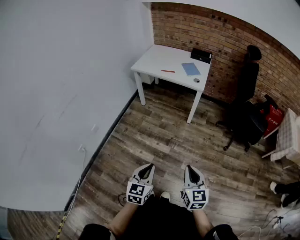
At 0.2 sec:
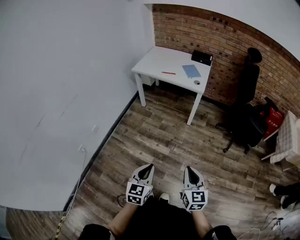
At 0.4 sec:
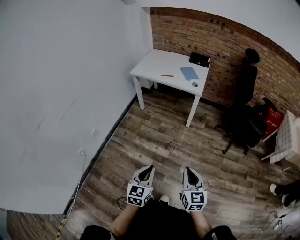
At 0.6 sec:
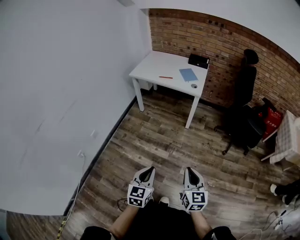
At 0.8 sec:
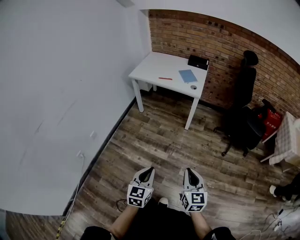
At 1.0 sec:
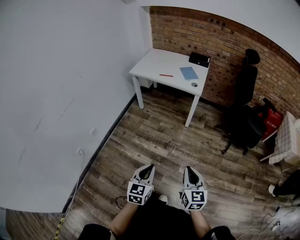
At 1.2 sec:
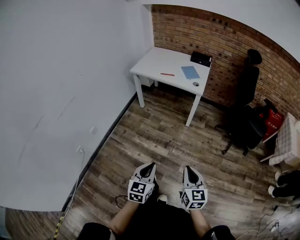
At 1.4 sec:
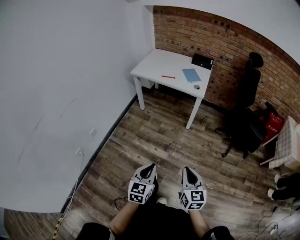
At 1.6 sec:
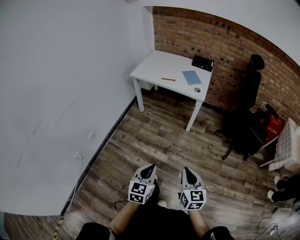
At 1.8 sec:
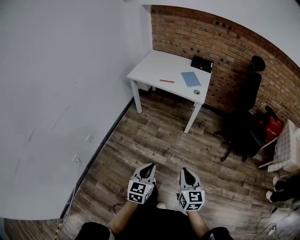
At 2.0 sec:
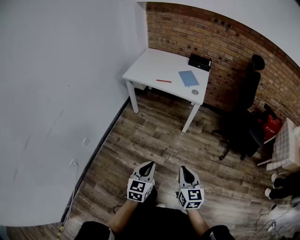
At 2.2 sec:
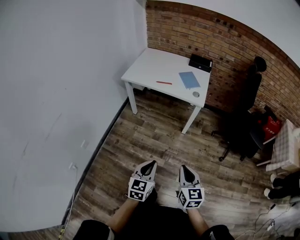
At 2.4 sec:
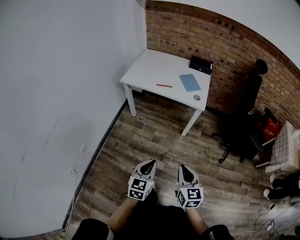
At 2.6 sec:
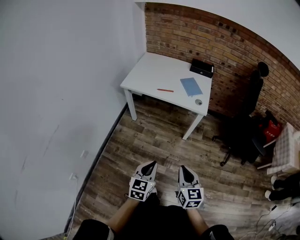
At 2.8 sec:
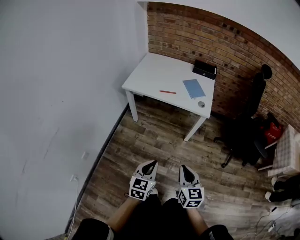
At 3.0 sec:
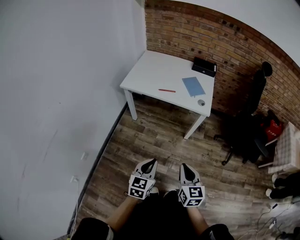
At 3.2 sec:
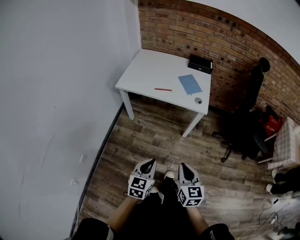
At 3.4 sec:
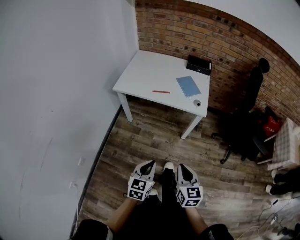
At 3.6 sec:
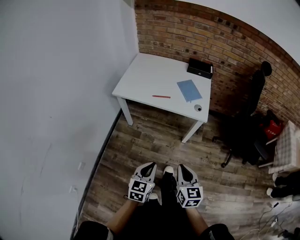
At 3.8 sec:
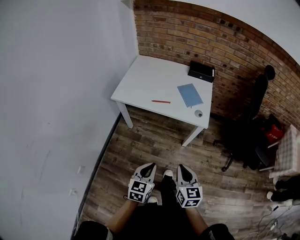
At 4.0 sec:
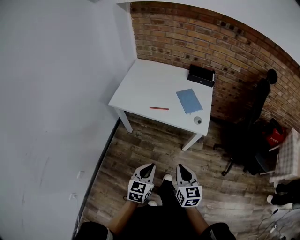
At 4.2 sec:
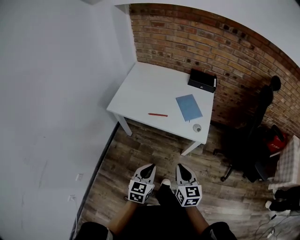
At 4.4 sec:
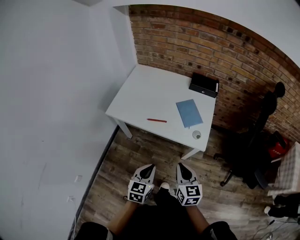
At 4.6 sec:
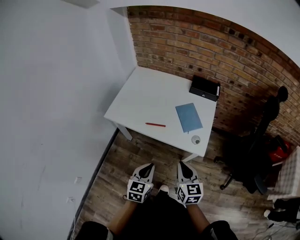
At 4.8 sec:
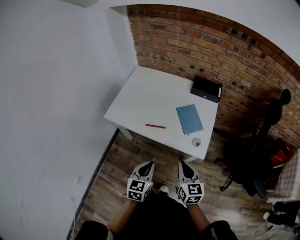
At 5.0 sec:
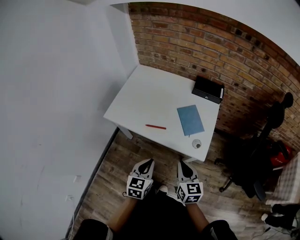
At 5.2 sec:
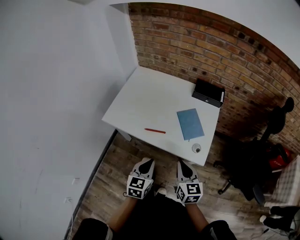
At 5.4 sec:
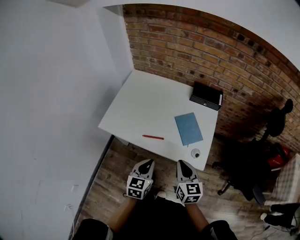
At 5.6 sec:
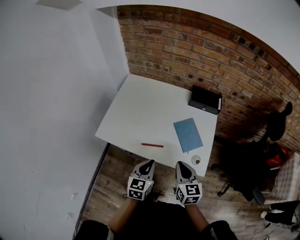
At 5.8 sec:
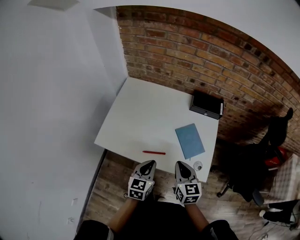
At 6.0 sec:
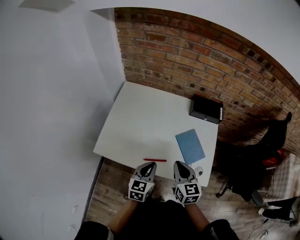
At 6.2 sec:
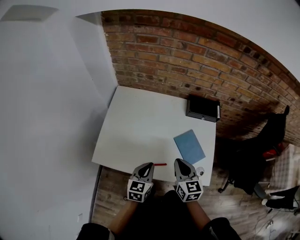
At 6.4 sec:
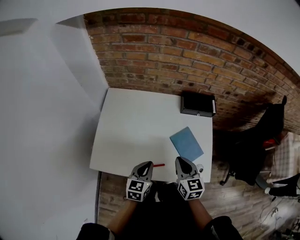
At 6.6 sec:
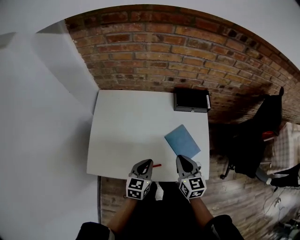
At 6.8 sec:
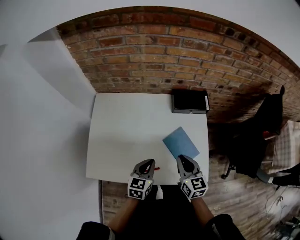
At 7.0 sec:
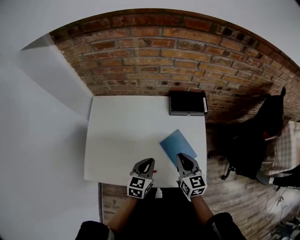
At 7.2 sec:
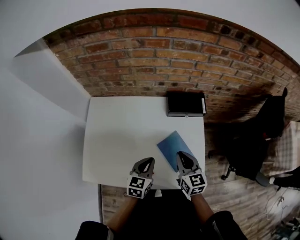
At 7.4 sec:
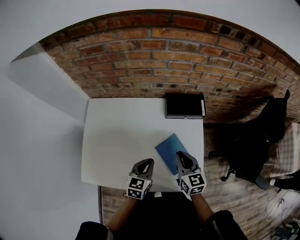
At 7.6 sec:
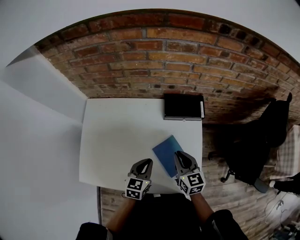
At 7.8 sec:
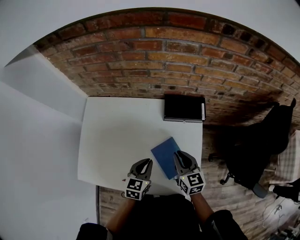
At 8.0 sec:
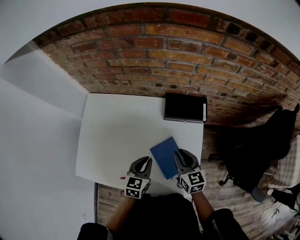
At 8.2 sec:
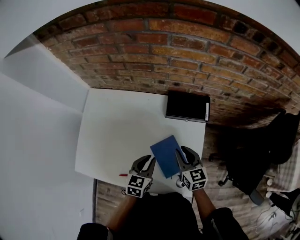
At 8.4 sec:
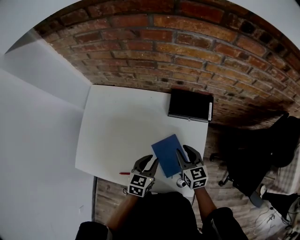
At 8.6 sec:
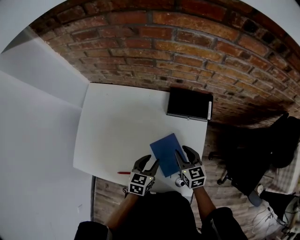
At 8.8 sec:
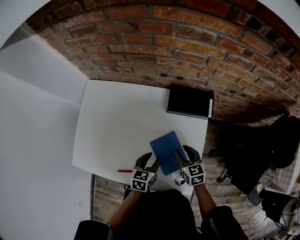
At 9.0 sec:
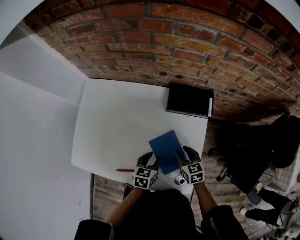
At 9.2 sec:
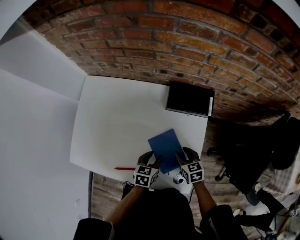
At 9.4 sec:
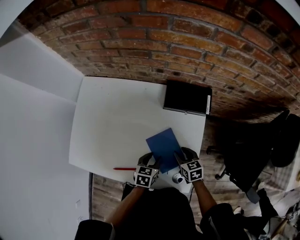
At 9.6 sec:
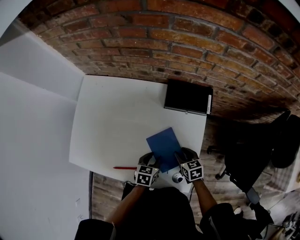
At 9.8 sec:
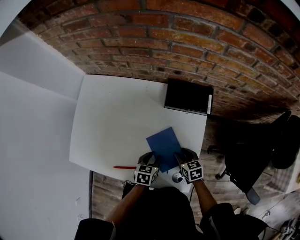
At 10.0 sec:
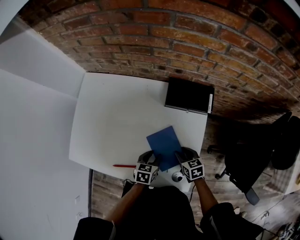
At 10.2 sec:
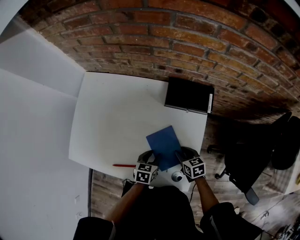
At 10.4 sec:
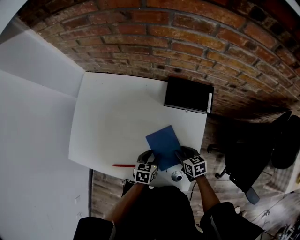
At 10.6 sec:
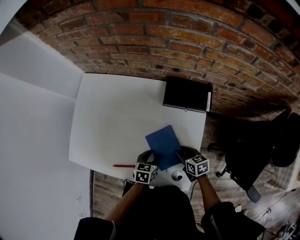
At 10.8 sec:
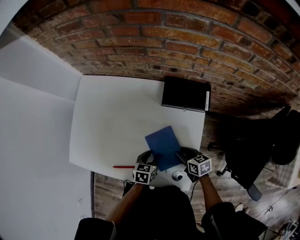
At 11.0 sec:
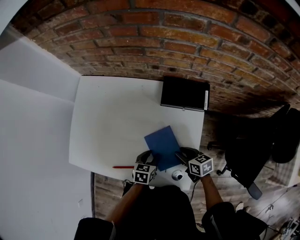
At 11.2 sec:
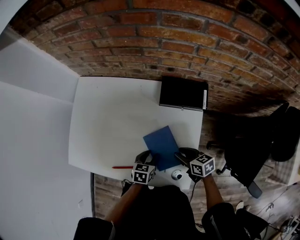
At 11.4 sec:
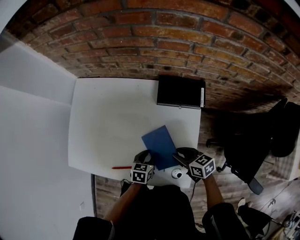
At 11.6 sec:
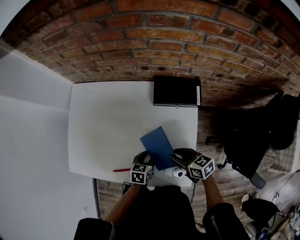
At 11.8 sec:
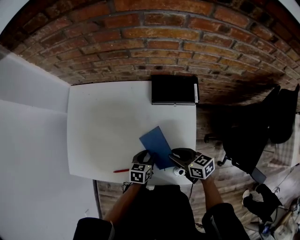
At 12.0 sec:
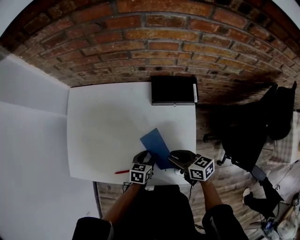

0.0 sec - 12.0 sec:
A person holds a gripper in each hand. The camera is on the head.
0.0 sec - 1.6 sec: Both grippers travel together forward, some 10 cm.
1.6 sec - 3.0 sec: The right gripper shifts about 25 cm forward and to the left, while the left gripper travels forward by about 25 cm.
3.0 sec - 4.4 sec: Both grippers move forward, roughly 30 cm.
4.4 sec - 6.0 sec: The two grippers go some 30 cm forward.
6.0 sec - 7.6 sec: Both grippers move forward and to the right, roughly 20 cm.
7.6 sec - 9.0 sec: The right gripper goes about 15 cm downward, rotates approximately 20 degrees, and opens its fingers. The left gripper travels downward and to the right by roughly 10 cm, and opens up.
9.0 sec - 10.4 sec: The right gripper ends up approximately 5 cm from where it was.
10.4 sec - 12.0 sec: The right gripper shifts about 15 cm upward and to the left, and changes its angle by some 20 degrees.

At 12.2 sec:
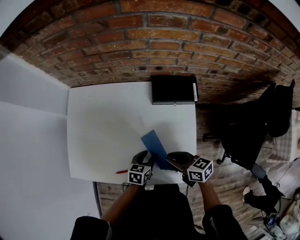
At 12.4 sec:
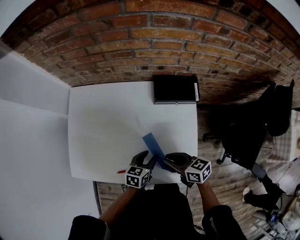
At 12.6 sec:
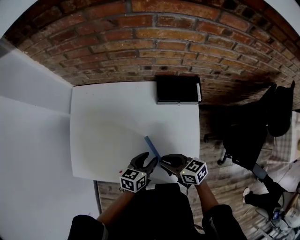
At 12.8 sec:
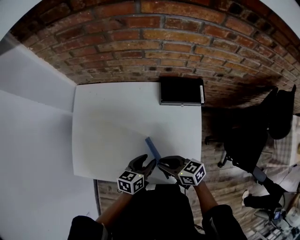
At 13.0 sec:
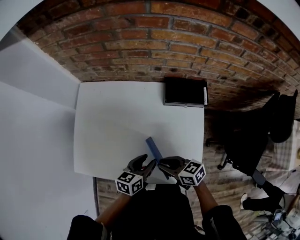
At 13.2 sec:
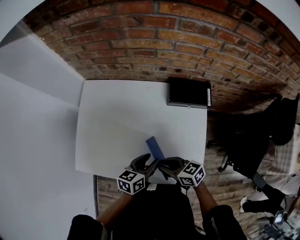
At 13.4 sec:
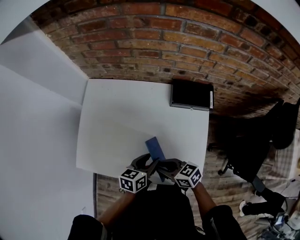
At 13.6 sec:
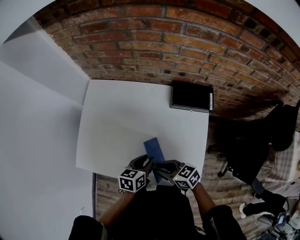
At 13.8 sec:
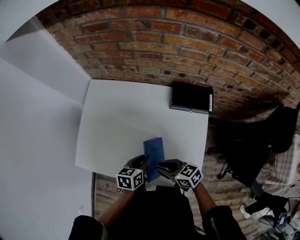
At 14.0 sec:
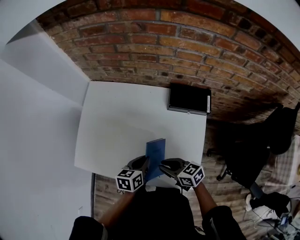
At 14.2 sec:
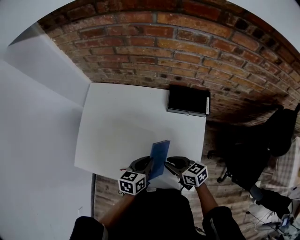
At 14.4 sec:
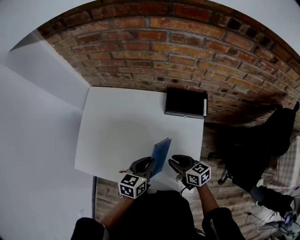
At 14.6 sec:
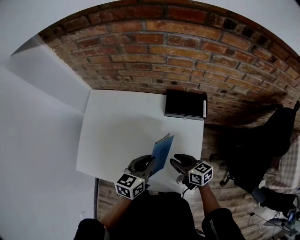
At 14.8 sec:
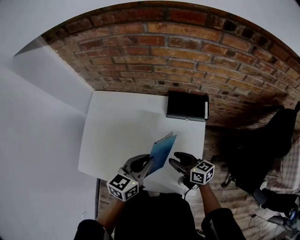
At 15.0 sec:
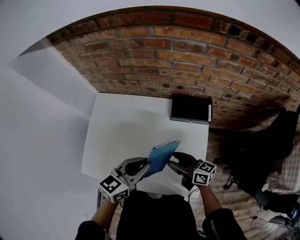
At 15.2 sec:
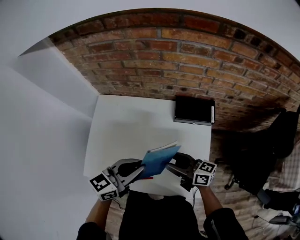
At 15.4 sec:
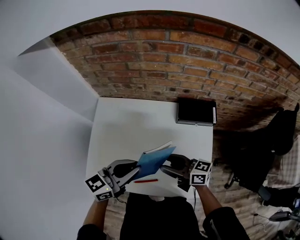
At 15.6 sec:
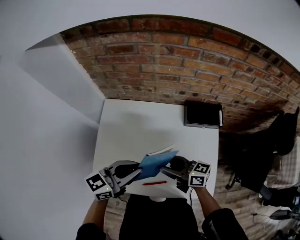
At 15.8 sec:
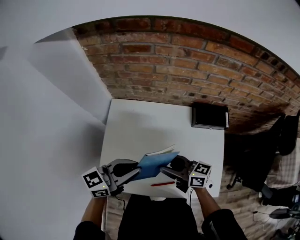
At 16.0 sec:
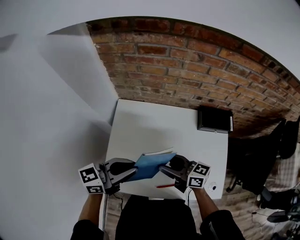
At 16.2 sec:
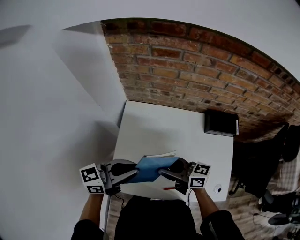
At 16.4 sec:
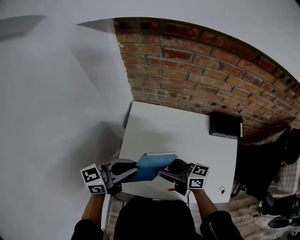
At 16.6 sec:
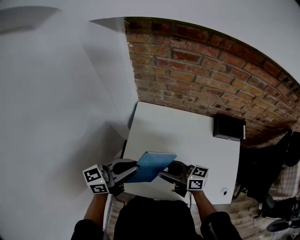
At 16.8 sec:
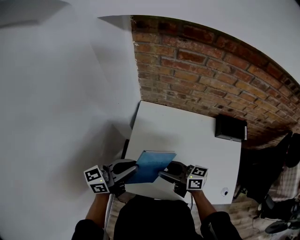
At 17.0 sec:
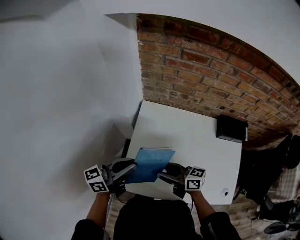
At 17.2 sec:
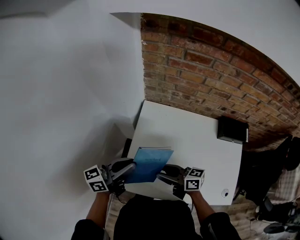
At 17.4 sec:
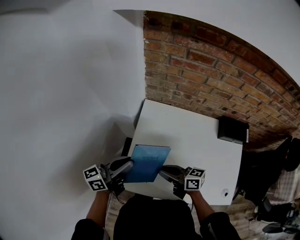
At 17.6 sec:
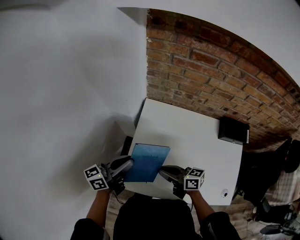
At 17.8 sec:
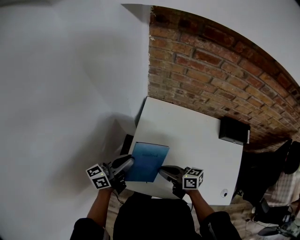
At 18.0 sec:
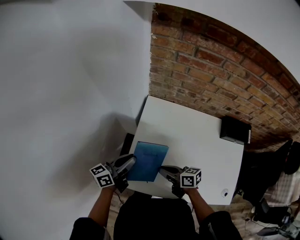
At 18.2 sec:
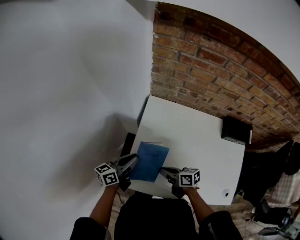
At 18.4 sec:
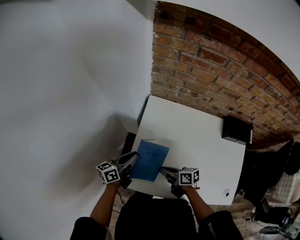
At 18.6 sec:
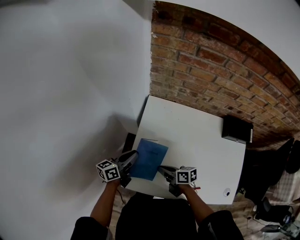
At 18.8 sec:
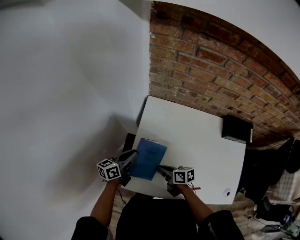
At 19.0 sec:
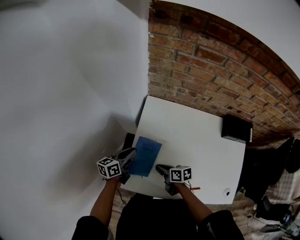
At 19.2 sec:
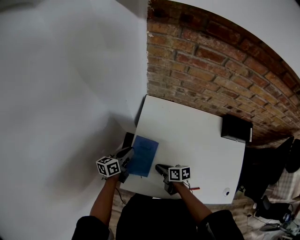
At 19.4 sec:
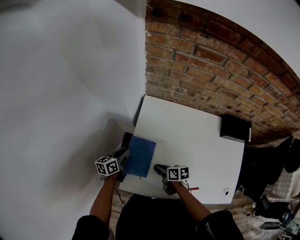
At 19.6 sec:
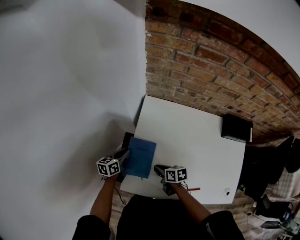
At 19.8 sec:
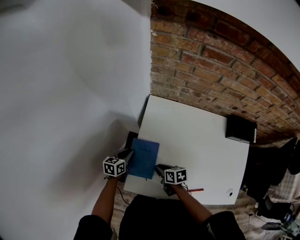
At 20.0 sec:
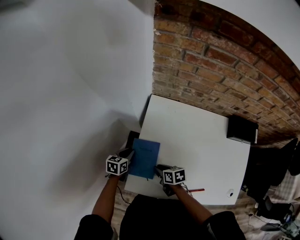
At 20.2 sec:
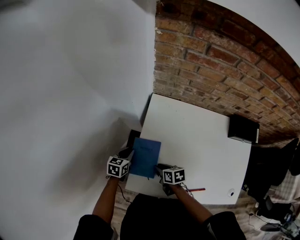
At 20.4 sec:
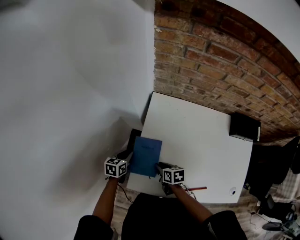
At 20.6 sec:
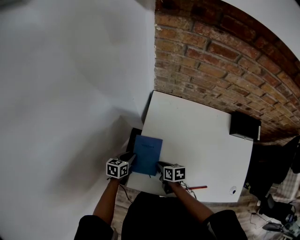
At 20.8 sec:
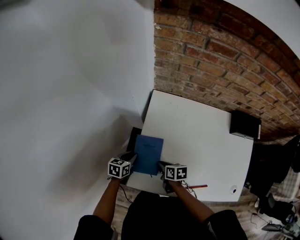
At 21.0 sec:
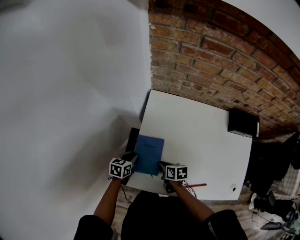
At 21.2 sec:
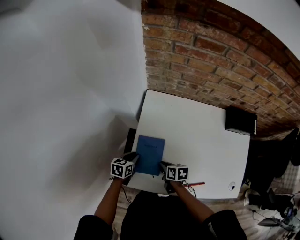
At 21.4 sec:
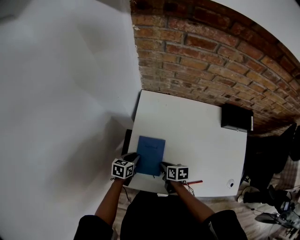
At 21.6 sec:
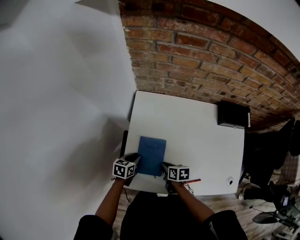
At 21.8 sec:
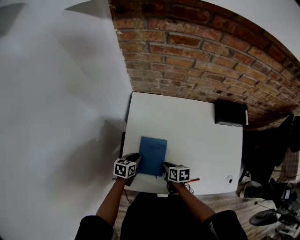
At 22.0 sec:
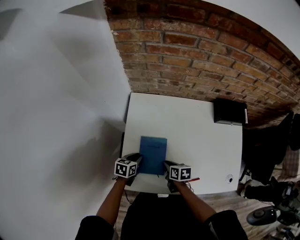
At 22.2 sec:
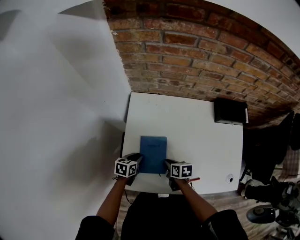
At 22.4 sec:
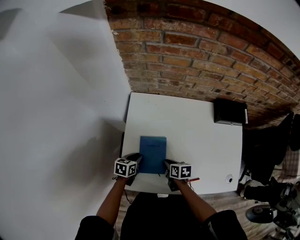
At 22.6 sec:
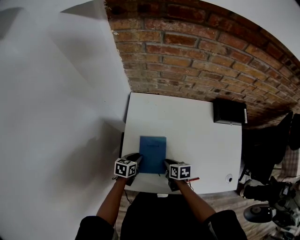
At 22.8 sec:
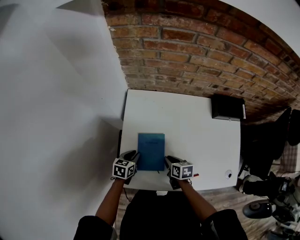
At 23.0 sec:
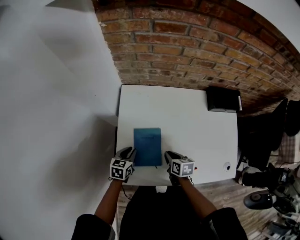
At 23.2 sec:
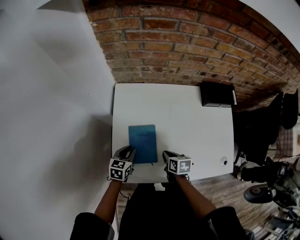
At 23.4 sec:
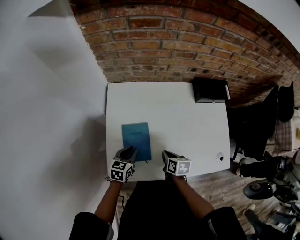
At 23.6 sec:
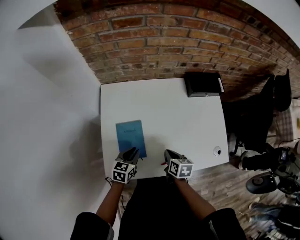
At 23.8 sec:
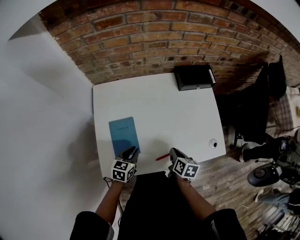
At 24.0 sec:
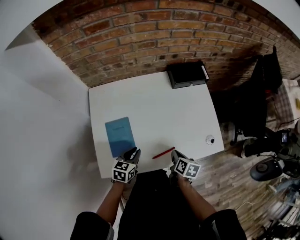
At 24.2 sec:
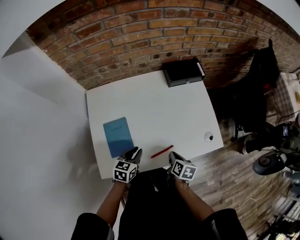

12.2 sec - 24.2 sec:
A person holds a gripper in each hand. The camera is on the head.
12.2 sec - 13.8 sec: The right gripper travels to the left by roughly 10 cm, and rotates some 20 degrees. Meanwhile the left gripper heads upward and to the left, covering roughly 10 cm.
13.8 sec - 15.2 sec: The right gripper is displaced upward and forward by approximately 15 cm, turns by some 30 degrees, and opens its fingers. Meanwhile the left gripper heads upward, covering approximately 20 cm, and angles its fingers upward, by roughly 30 degrees.
15.2 sec - 16.6 sec: The left gripper shifts by about 35 cm; the right gripper moves approximately 35 cm.
16.6 sec - 18.2 sec: The right gripper travels downward by about 15 cm, swivels about 30 degrees, and closes. The left gripper travels downward and to the left by roughly 15 cm, and rotates roughly 30 degrees.
18.2 sec - 19.8 sec: The left gripper goes about 15 cm downward and forward, and points its fingers roughly 30 degrees further downward. The right gripper moves downward, about 10 cm, and rotates approximately 20 degrees.
19.8 sec - 21.2 sec: The left gripper is displaced backward by some 5 cm.
21.2 sec - 22.6 sec: The two grippers go approximately 10 cm to the right.
22.6 sec - 24.2 sec: The right gripper ends up roughly 25 cm from where it was, and swivels about 40 degrees. Meanwhile the left gripper ends up approximately 20 cm from where it was, and changes its angle by approximately 30 degrees.
